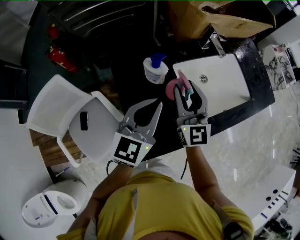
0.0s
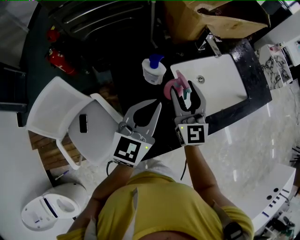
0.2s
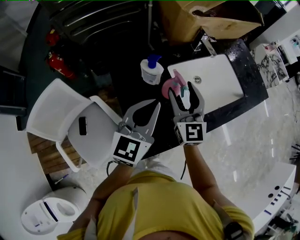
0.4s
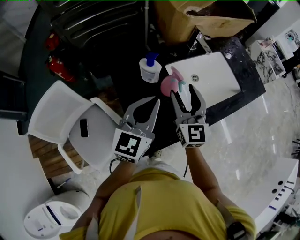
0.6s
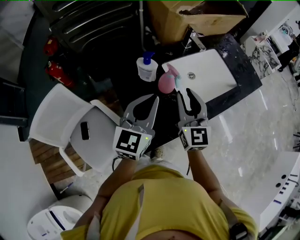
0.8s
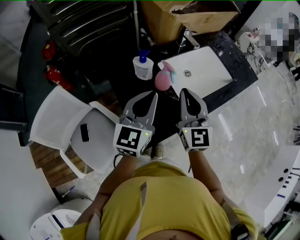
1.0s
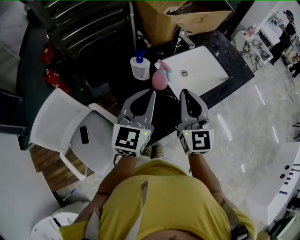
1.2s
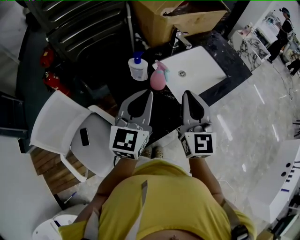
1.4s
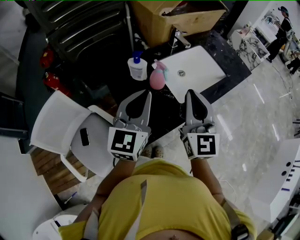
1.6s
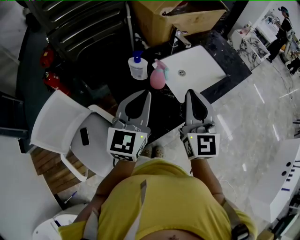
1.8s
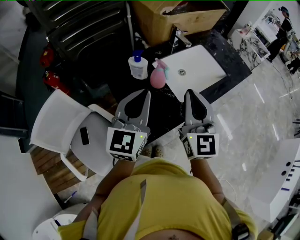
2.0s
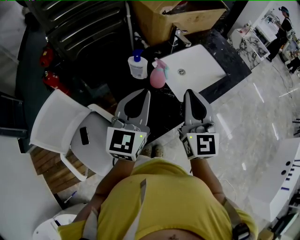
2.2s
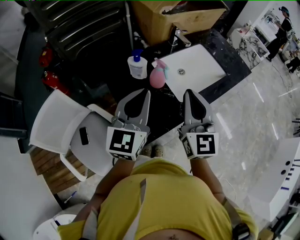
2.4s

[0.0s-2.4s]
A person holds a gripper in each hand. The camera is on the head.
0.0s to 1.2s: The right gripper heads backward, upward and to the right, covering some 15 cm, and closes; the left gripper is displaced backward and upward by some 10 cm.
1.2s to 2.4s: The grippers stay close to where they were, moving slightly.

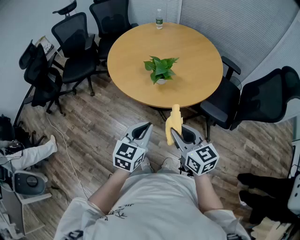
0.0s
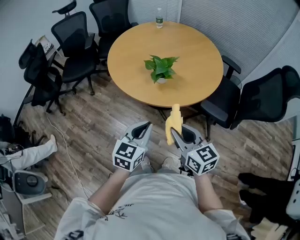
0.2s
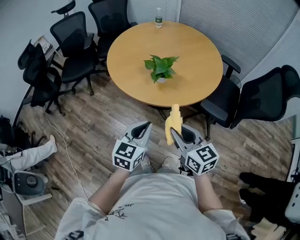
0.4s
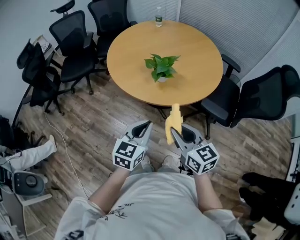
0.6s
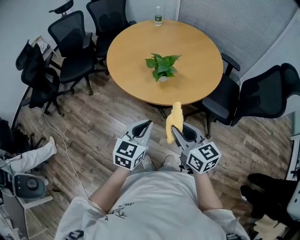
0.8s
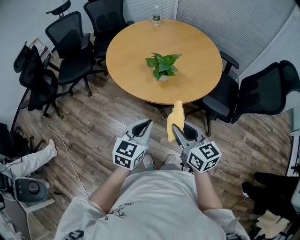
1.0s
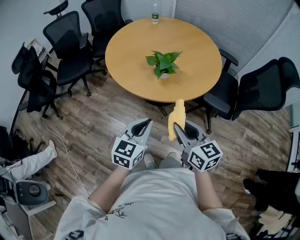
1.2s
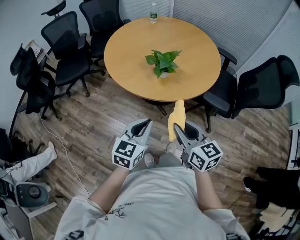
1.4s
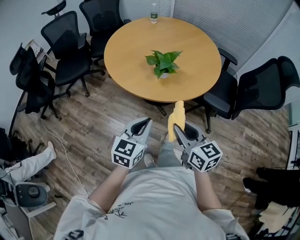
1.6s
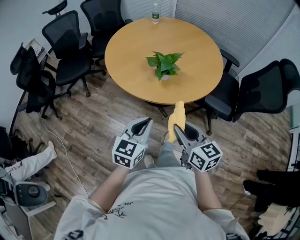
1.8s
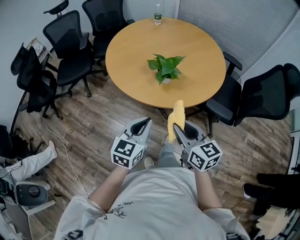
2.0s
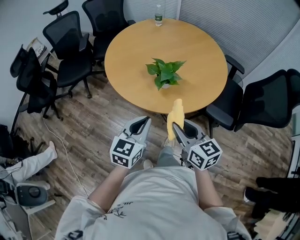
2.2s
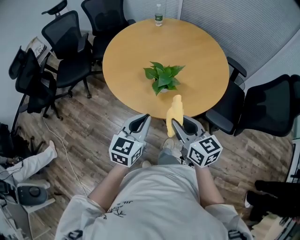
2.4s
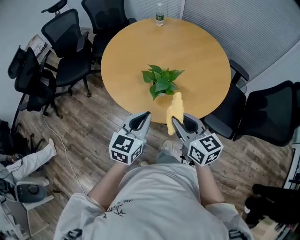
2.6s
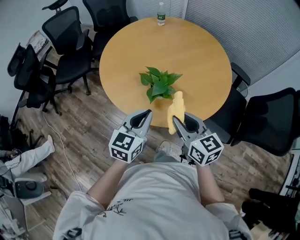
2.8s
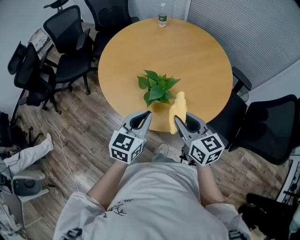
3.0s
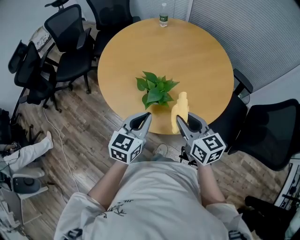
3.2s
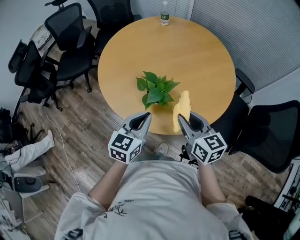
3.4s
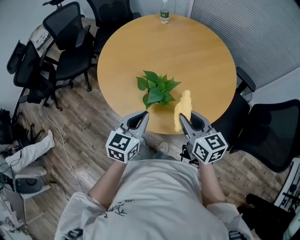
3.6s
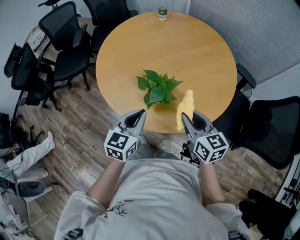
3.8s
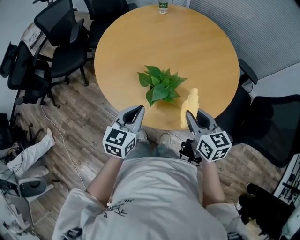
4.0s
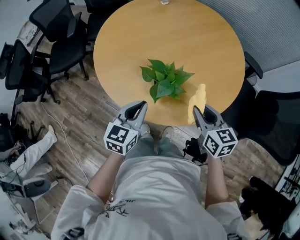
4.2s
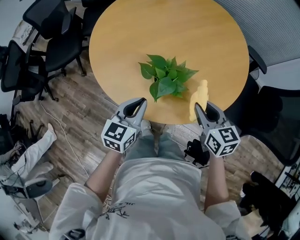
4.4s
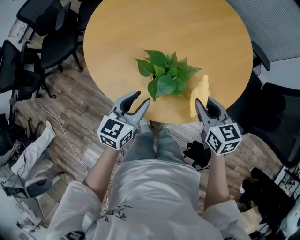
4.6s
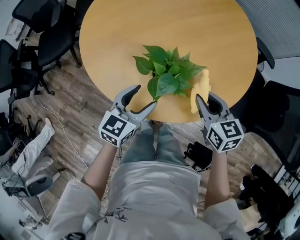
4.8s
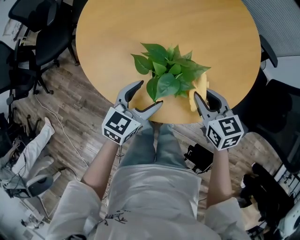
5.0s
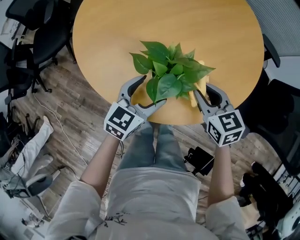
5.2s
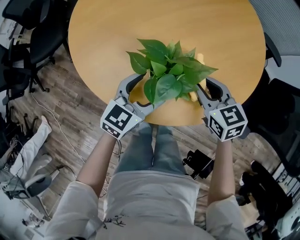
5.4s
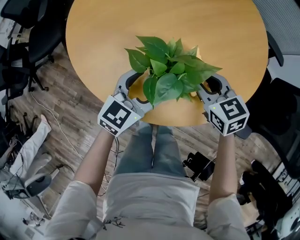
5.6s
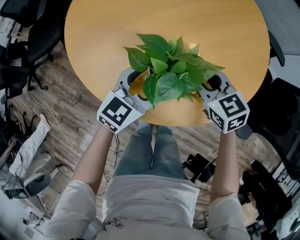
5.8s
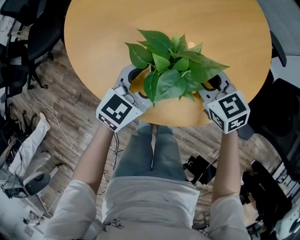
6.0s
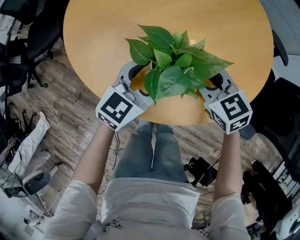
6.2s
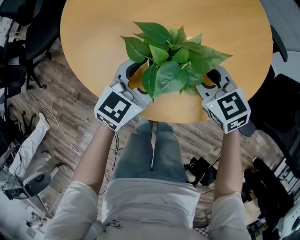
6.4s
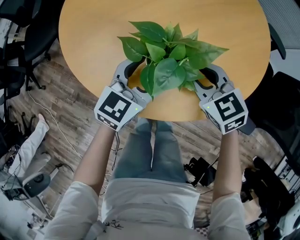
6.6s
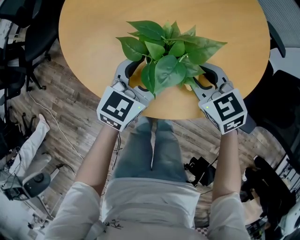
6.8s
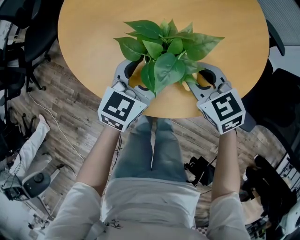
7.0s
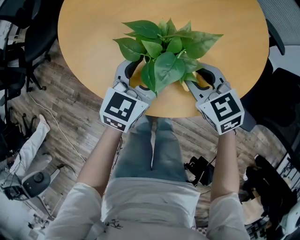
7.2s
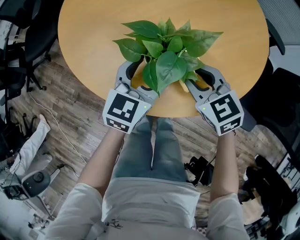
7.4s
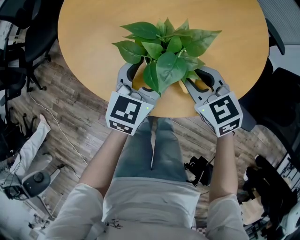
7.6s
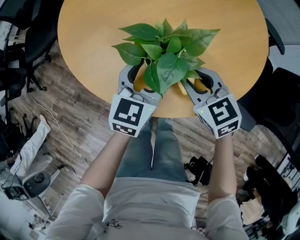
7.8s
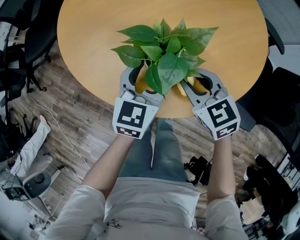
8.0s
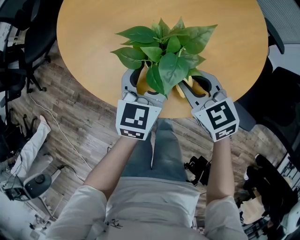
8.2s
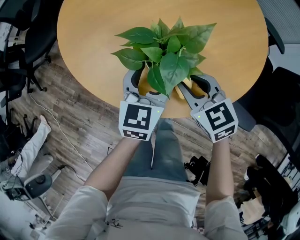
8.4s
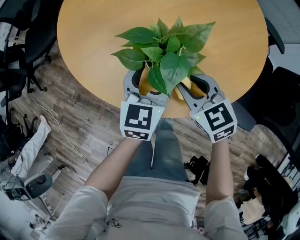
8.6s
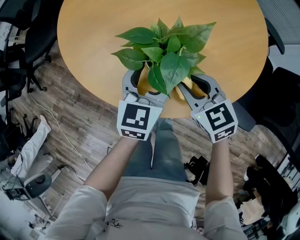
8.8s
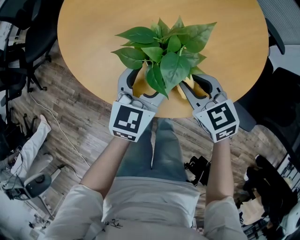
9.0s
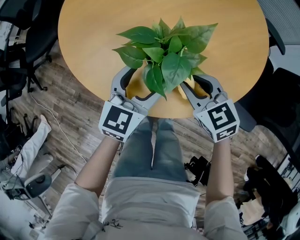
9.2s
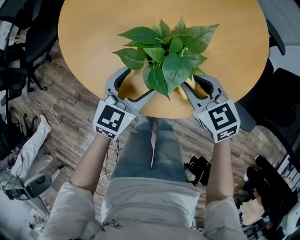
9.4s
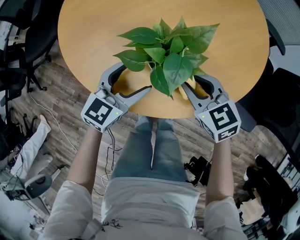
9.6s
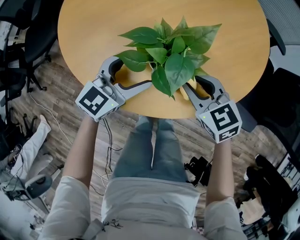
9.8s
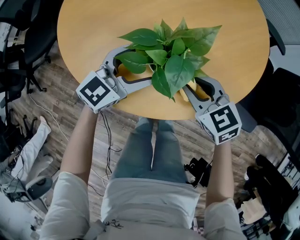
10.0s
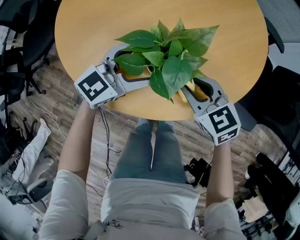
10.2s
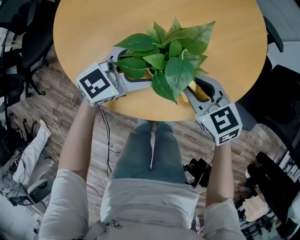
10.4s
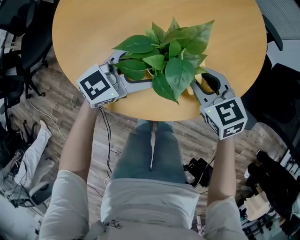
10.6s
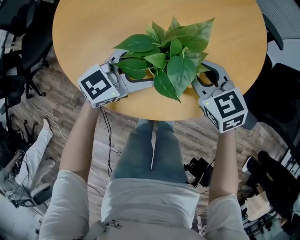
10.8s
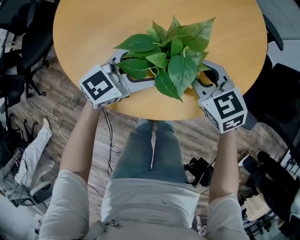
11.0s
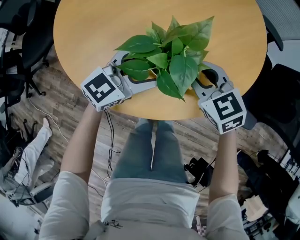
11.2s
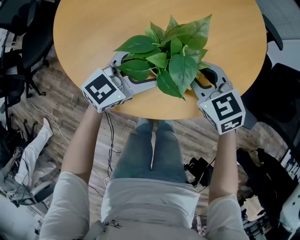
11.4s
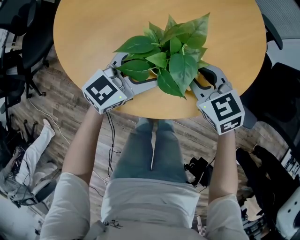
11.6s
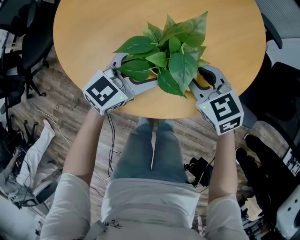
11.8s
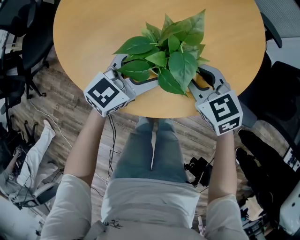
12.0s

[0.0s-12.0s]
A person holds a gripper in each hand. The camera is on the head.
0.0s to 1.6s: The left gripper shifts about 5 cm to the left. Meanwhile the right gripper moves some 5 cm.
1.6s to 3.0s: Both grippers travel together forward, approximately 25 cm.
3.0s to 4.4s: The left gripper moves downward, forward and to the left, some 10 cm; the right gripper shifts roughly 10 cm downward and forward.
4.4s to 6.0s: The left gripper travels downward, forward and to the right by about 15 cm, rotates some 20 degrees, and opens its fingers, while the right gripper travels downward, forward and to the left by some 15 cm, and turns by approximately 20 degrees.
6.0s to 7.6s: The grippers move only a little.
7.6s to 9.0s: The grippers stay close to where they were, moving slightly.
9.0s to 10.4s: The left gripper rotates roughly 40 degrees.
10.4s to 12.0s: The grippers stay close to where they were, moving slightly.

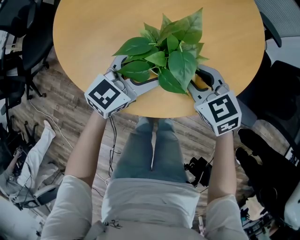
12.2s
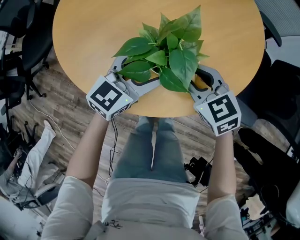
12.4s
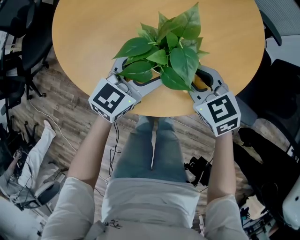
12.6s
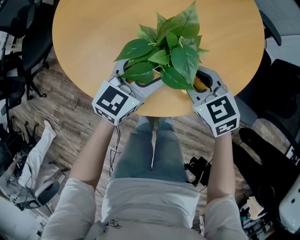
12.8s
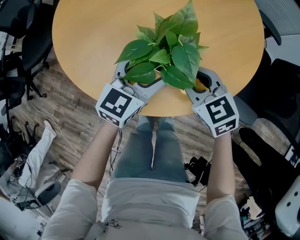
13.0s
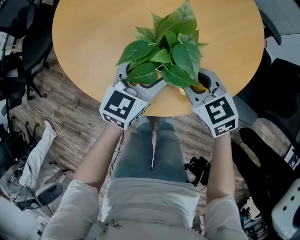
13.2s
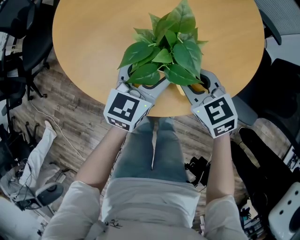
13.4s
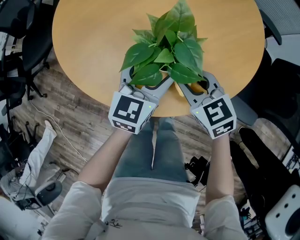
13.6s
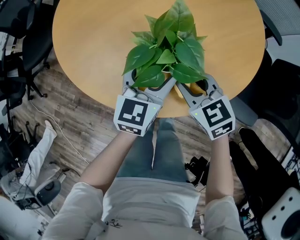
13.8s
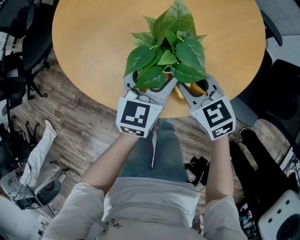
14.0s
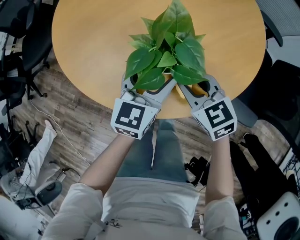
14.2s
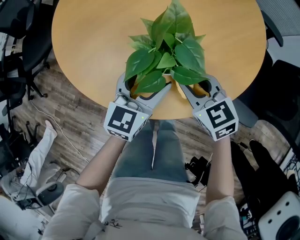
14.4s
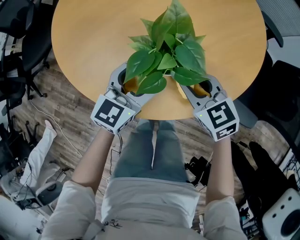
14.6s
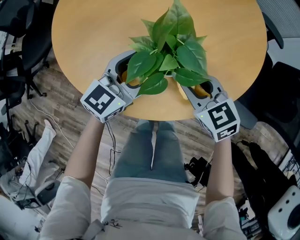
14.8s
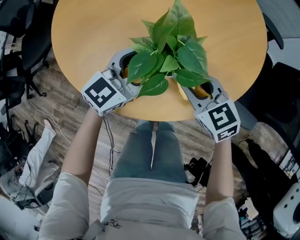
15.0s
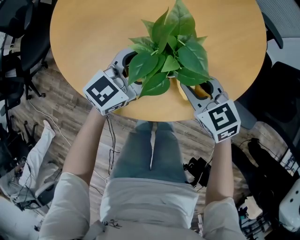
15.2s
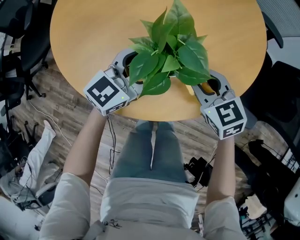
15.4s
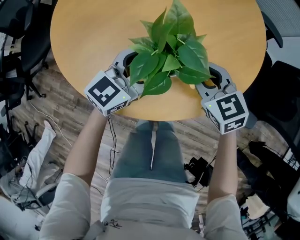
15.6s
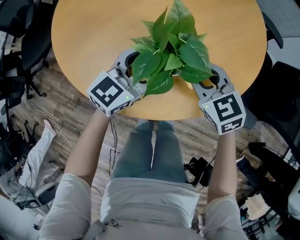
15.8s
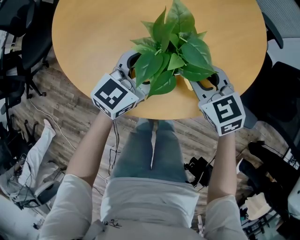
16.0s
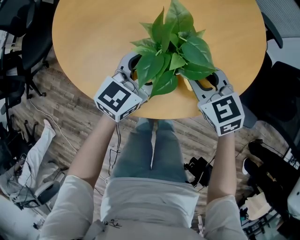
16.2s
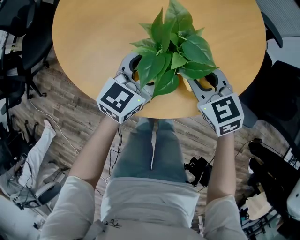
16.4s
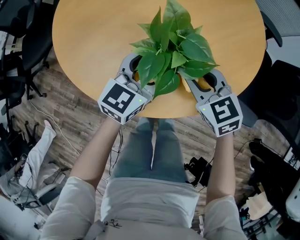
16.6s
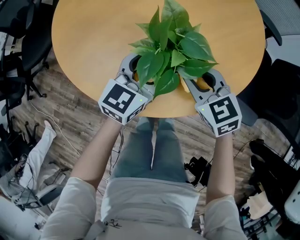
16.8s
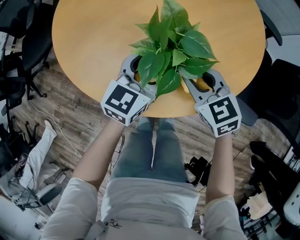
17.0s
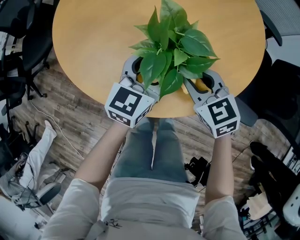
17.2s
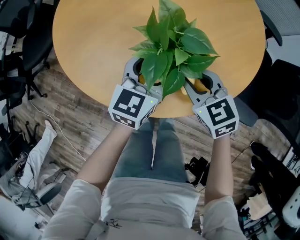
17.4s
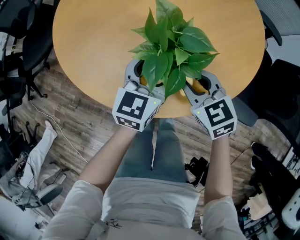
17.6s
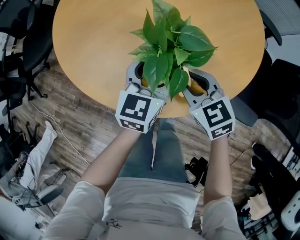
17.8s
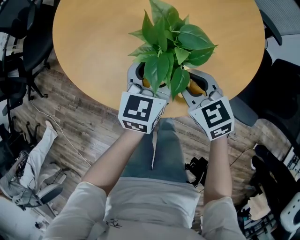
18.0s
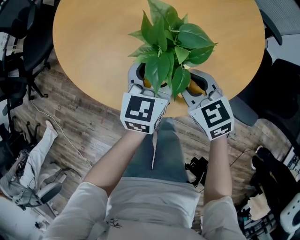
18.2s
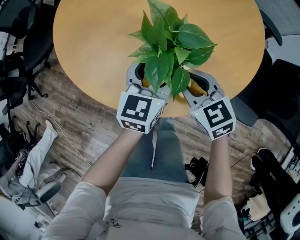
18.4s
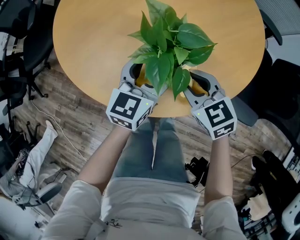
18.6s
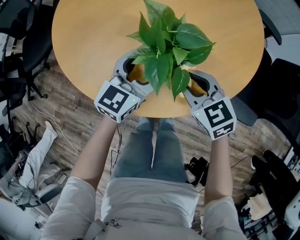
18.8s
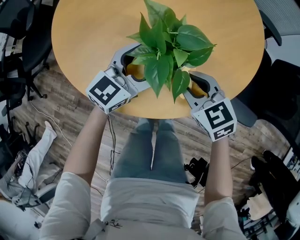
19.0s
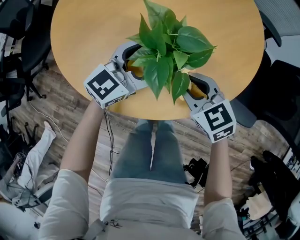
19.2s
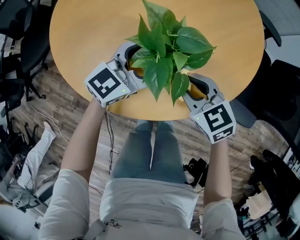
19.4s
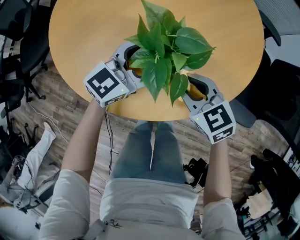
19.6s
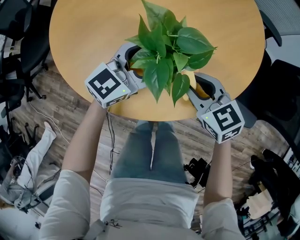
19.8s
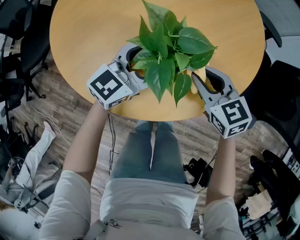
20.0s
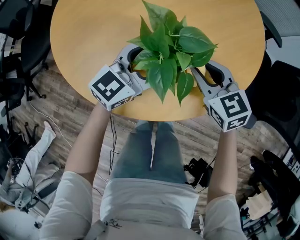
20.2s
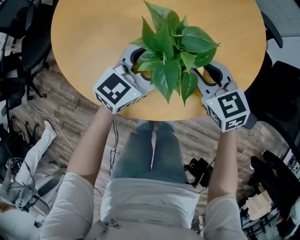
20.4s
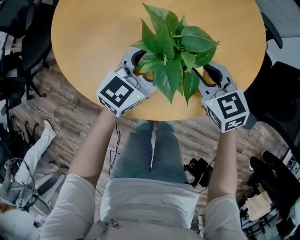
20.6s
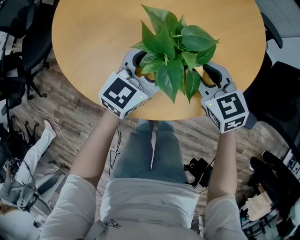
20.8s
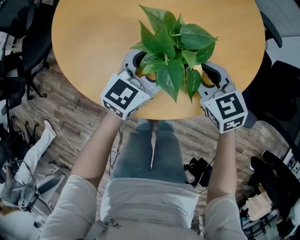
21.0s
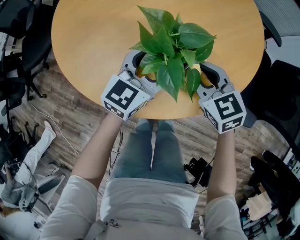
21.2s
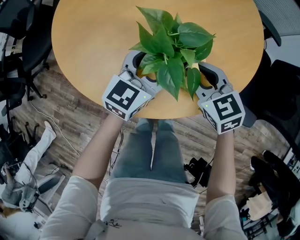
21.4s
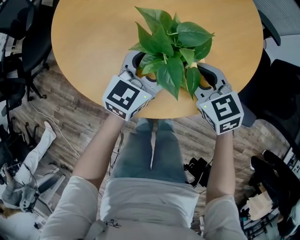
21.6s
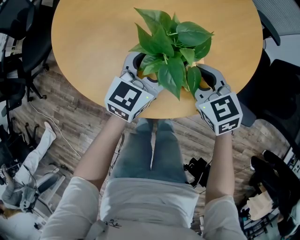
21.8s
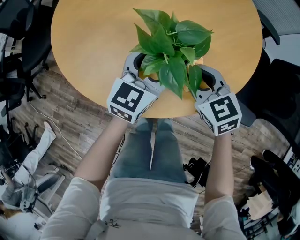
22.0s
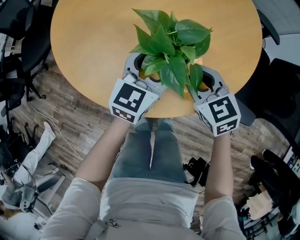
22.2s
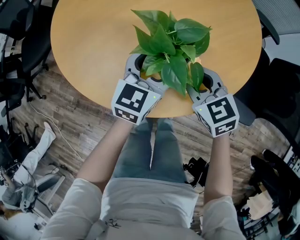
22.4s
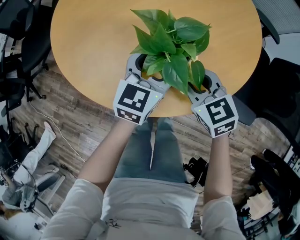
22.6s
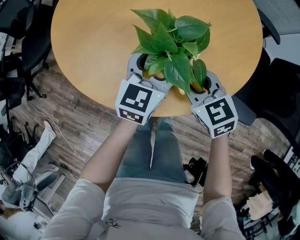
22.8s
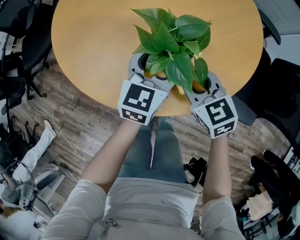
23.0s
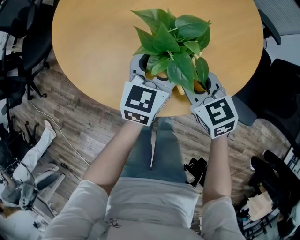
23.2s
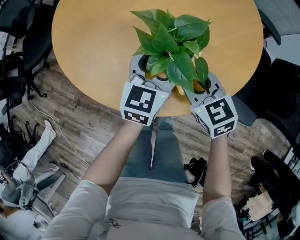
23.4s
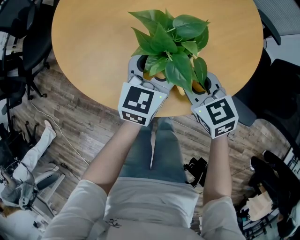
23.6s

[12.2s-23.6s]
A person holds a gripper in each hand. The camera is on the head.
12.2s to 13.6s: The left gripper rotates about 20 degrees.
13.6s to 15.0s: The left gripper swivels roughly 30 degrees.
15.0s to 16.4s: There are only small adjustments of the grippers.
16.4s to 17.8s: The grippers move only a little.
17.8s to 19.4s: The left gripper swivels roughly 40 degrees.
19.4s to 20.8s: The right gripper changes place by roughly 5 cm.
20.8s to 22.2s: The grippers make only small movements.
22.2s to 23.6s: The grippers make only small movements.
